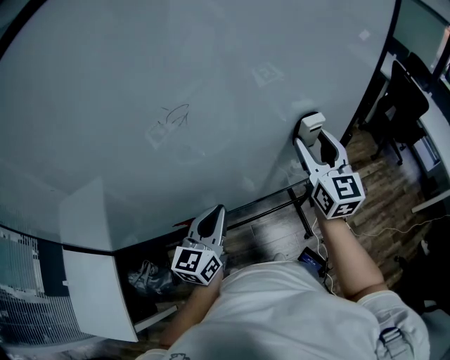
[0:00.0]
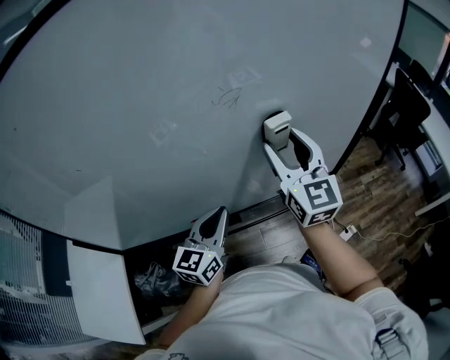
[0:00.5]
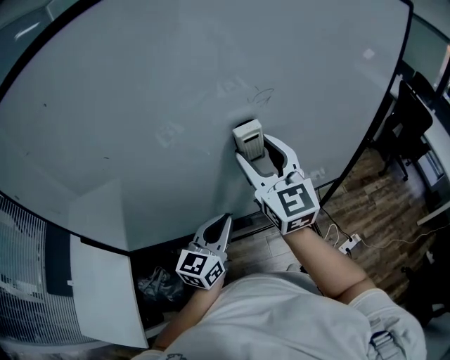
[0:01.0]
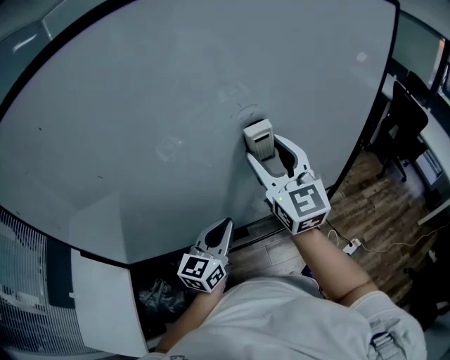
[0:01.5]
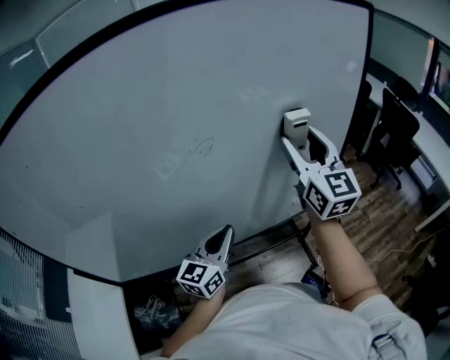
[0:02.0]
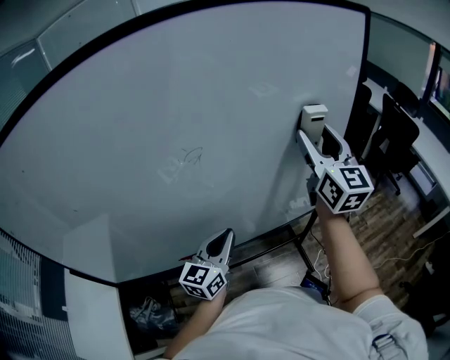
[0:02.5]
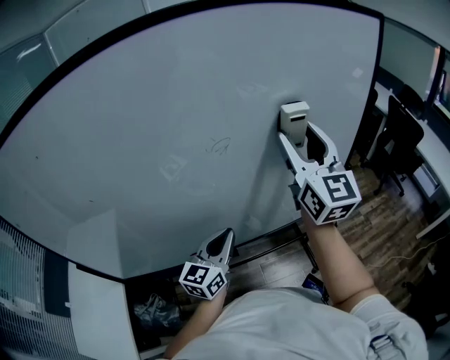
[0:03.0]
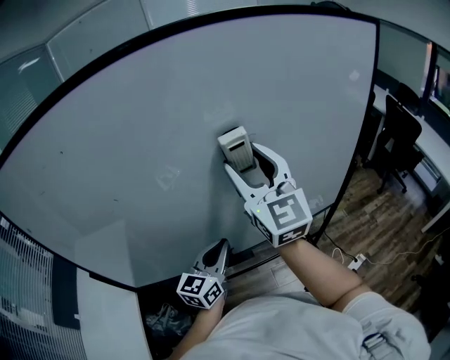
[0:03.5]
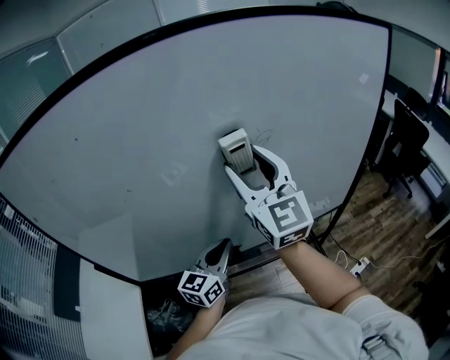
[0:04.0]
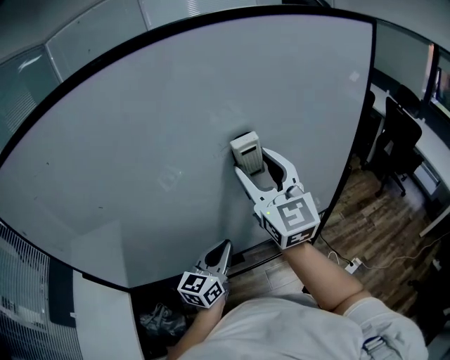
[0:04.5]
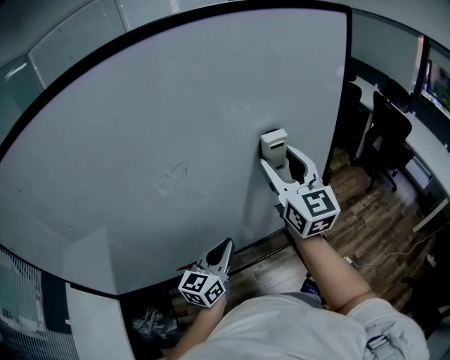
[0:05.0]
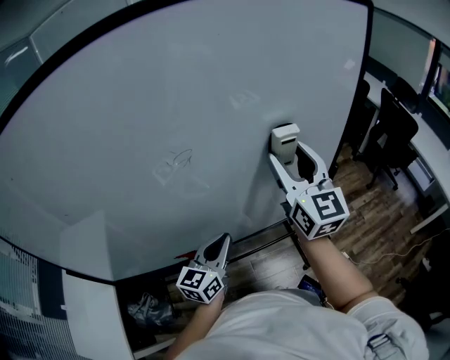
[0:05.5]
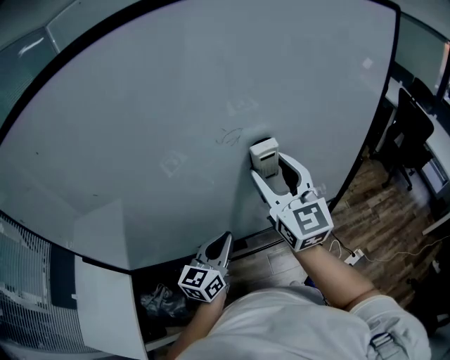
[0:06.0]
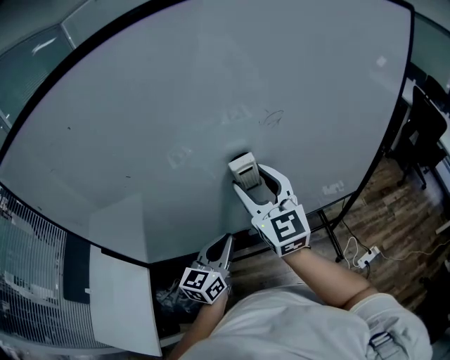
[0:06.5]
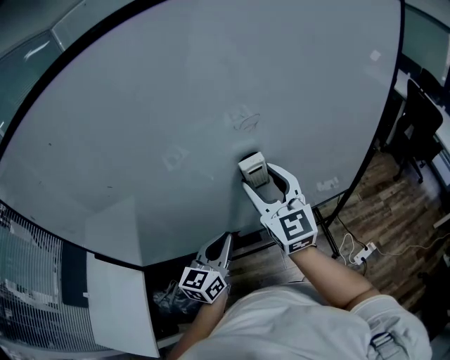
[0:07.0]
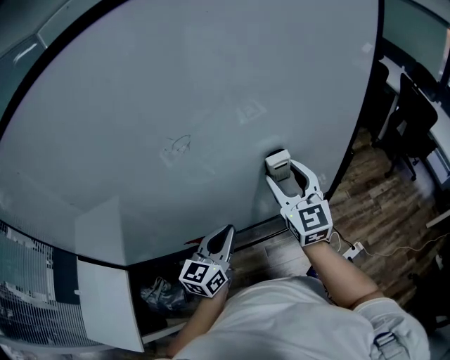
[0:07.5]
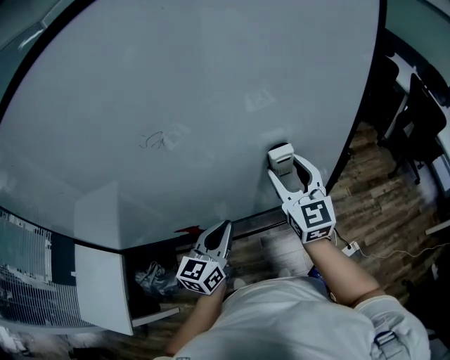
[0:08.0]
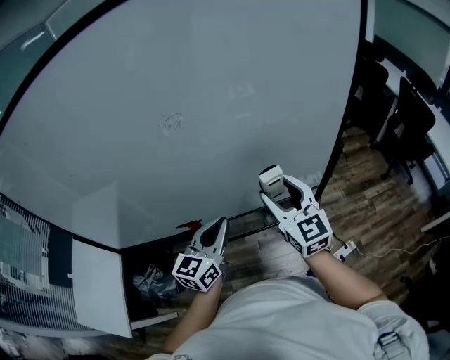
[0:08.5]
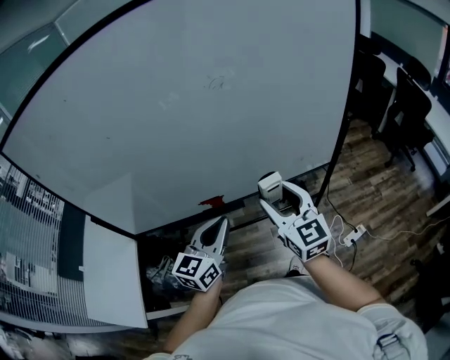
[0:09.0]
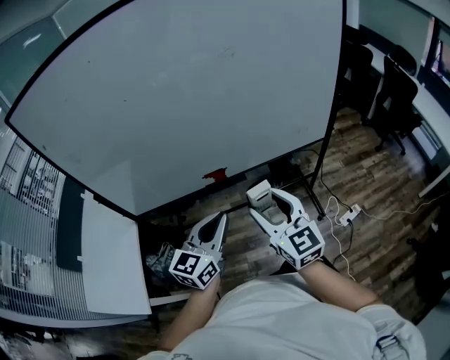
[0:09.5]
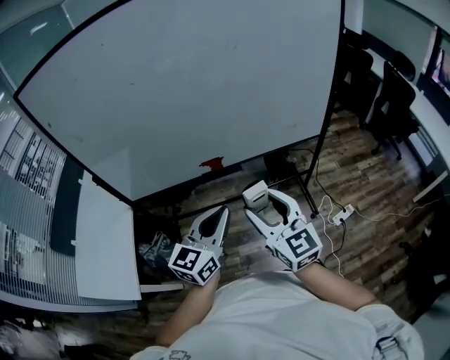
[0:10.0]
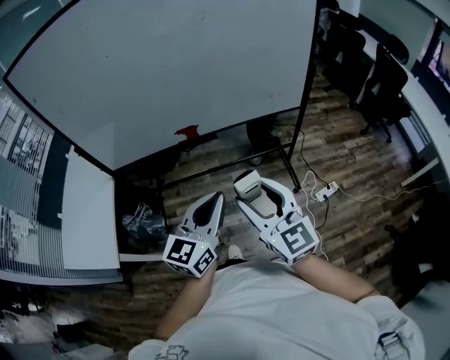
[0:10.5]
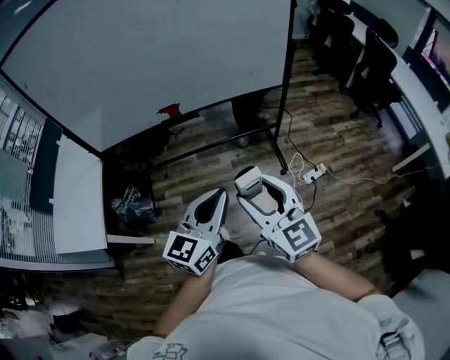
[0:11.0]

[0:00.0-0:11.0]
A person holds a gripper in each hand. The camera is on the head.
0:00.0 to 0:02.0: The right gripper heads upward, covering about 15 cm, and goes to the left and returns, approximately 25 cm each way. The left gripper moves about 10 cm to the left and comes back.
0:02.0 to 0:03.5: The left gripper moves to the left and backward, some 15 cm. Meanwhile the right gripper shifts approximately 25 cm to the left and backward.
0:03.5 to 0:05.5: The two grippers go some 20 cm to the right.
0:05.5 to 0:07.5: The right gripper moves downward, about 10 cm, and travels to the left and back again, some 30 cm each way, while the left gripper reaches approximately 20 cm to the left, then returns.
0:07.5 to 0:09.0: Both grippers travel together backward and to the left, roughly 25 cm.
0:09.0 to 0:11.0: Both grippers move backward, approximately 35 cm.

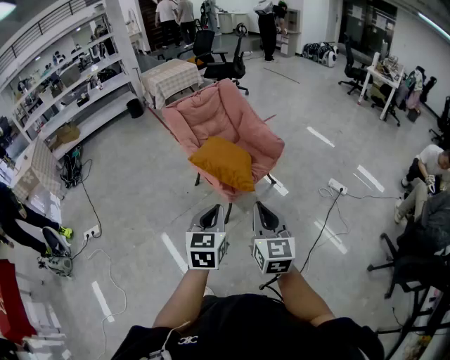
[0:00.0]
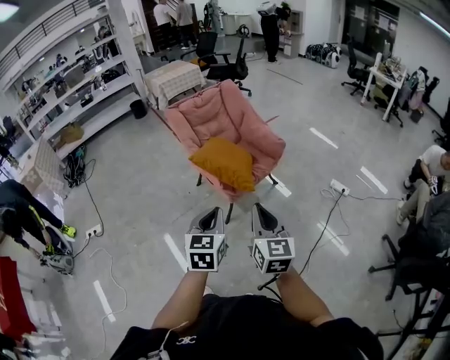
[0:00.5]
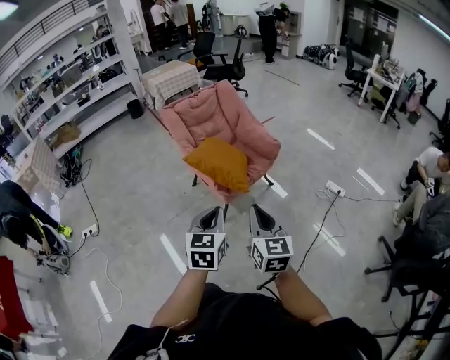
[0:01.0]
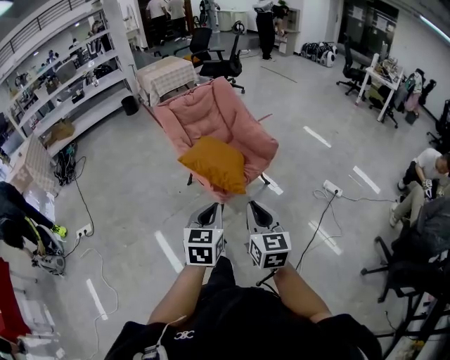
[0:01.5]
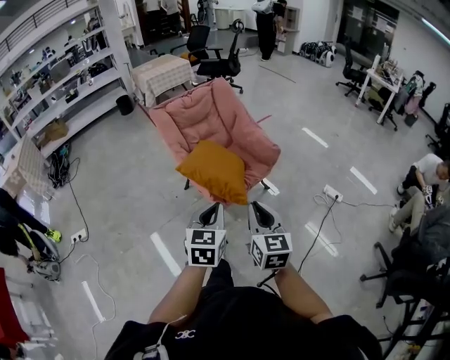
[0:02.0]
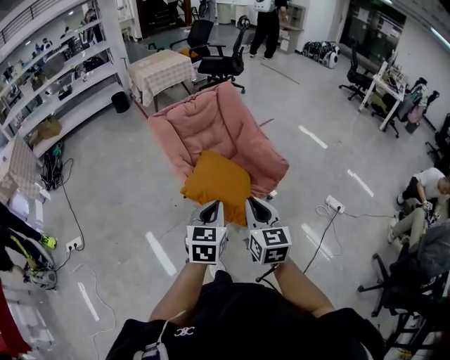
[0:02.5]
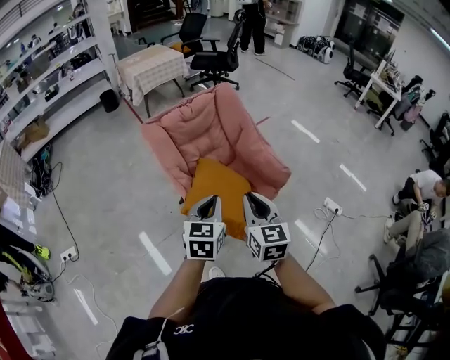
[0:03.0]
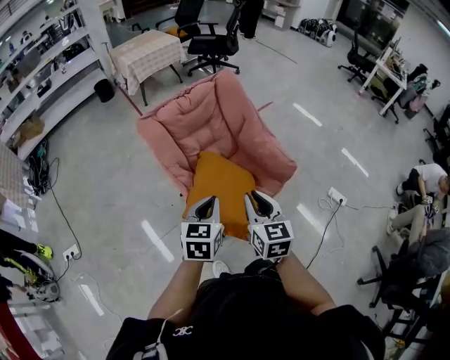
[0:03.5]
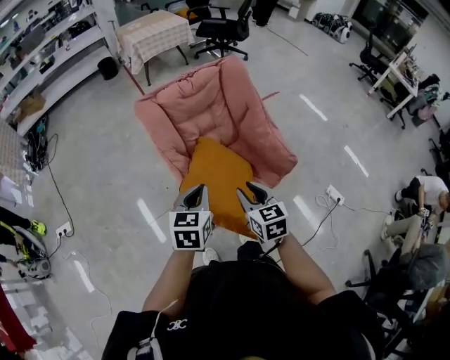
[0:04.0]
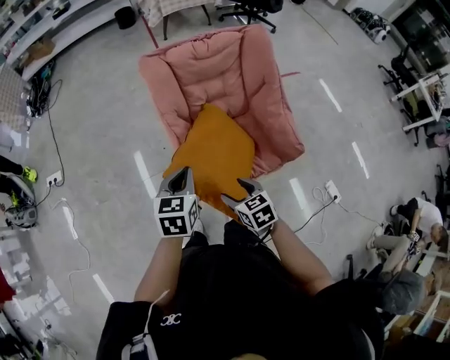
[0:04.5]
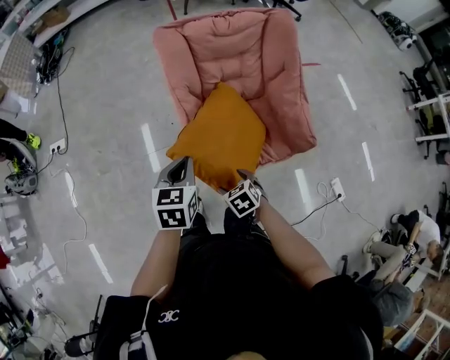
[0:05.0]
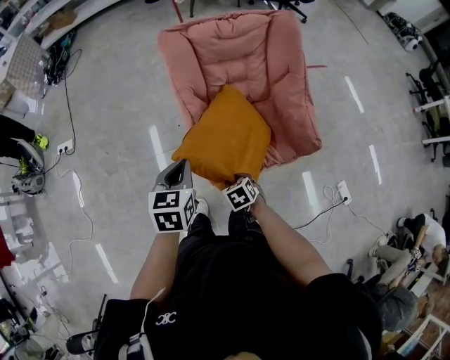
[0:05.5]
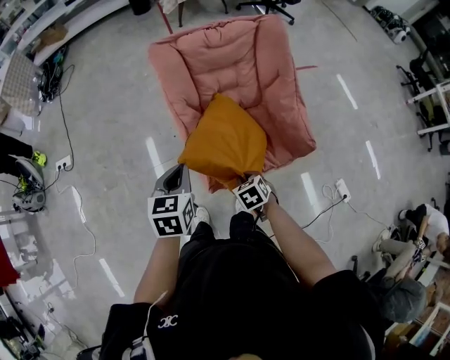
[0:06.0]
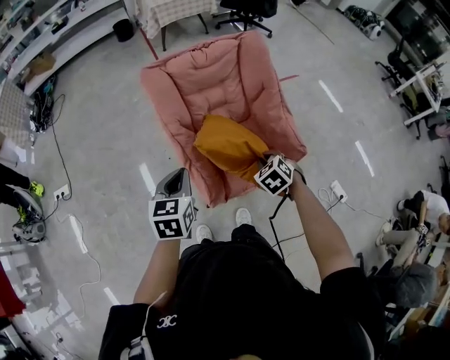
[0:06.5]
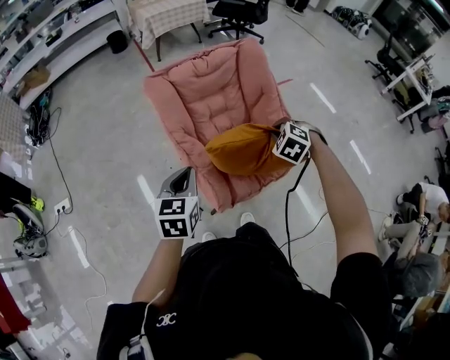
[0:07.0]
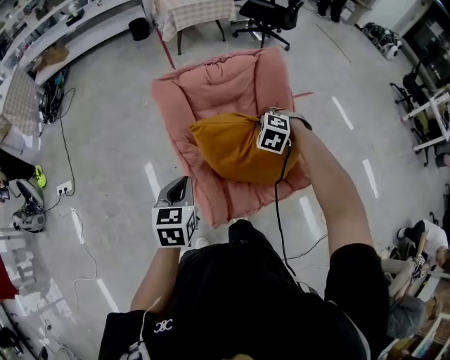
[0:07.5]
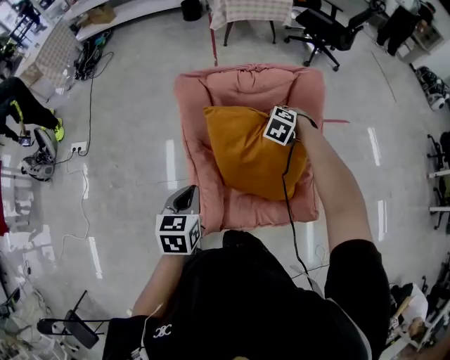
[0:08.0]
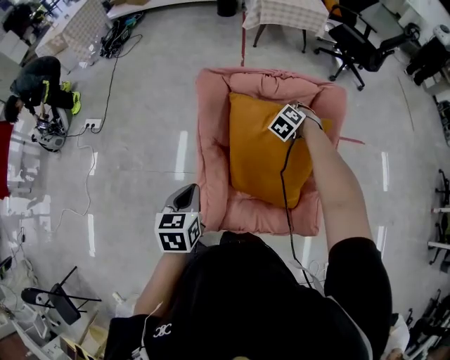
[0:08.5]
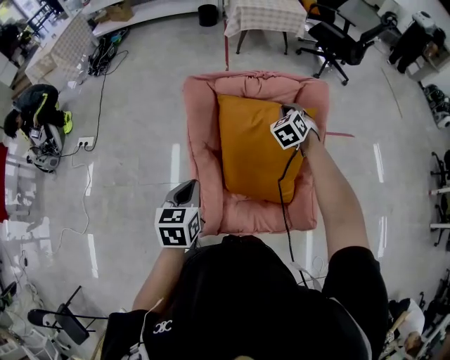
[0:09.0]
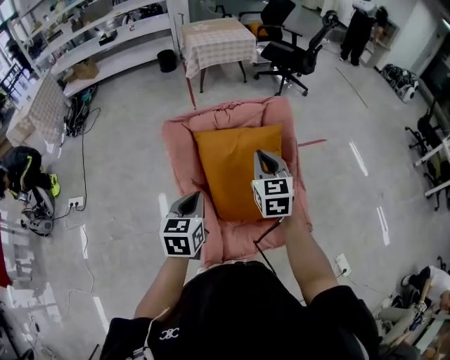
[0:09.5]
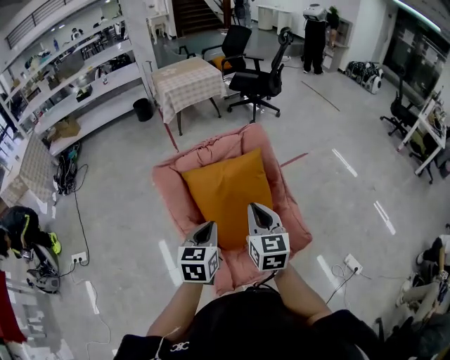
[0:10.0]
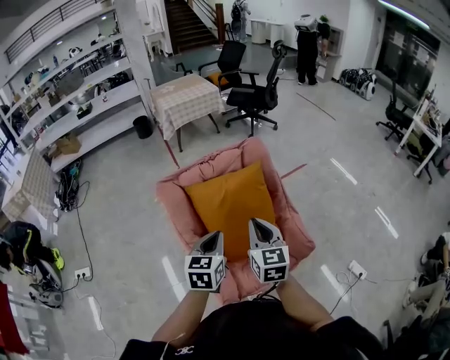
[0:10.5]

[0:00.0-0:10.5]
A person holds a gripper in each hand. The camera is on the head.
0:00.0 to 0:02.0: Both grippers move forward, about 10 cm.
0:02.0 to 0:04.0: Both grippers travel together forward, about 30 cm. The right gripper swivels some 30 degrees.
0:04.0 to 0:06.5: The right gripper tips its fingers downward by some 30 degrees, and opens and closes again, while the left gripper shifts by some 5 cm.
0:06.5 to 0:08.5: The left gripper heads forward, covering some 10 cm, and changes its angle by approximately 30 degrees; the right gripper travels forward by approximately 40 cm, and swivels some 40 degrees.
0:08.5 to 0:10.5: The left gripper travels to the right and upward by some 15 cm, and rotates about 40 degrees. The right gripper is displaced backward and upward by about 40 cm, and rolls clockwise, seen from behind, by about 70 degrees.

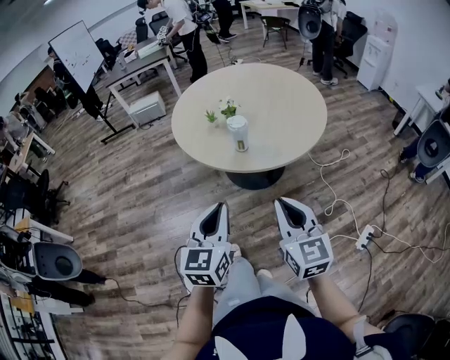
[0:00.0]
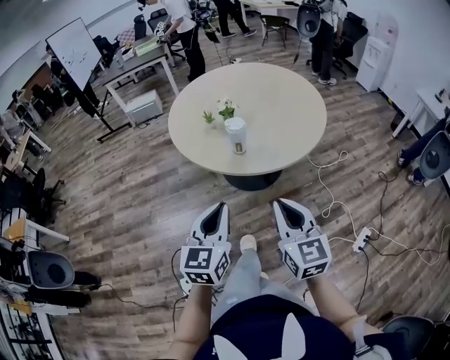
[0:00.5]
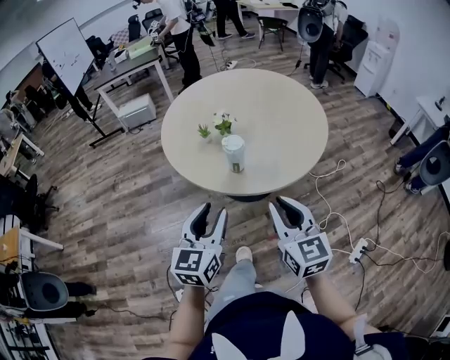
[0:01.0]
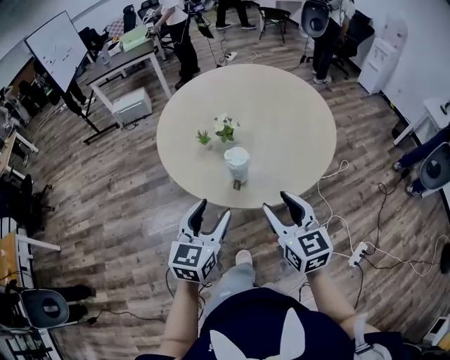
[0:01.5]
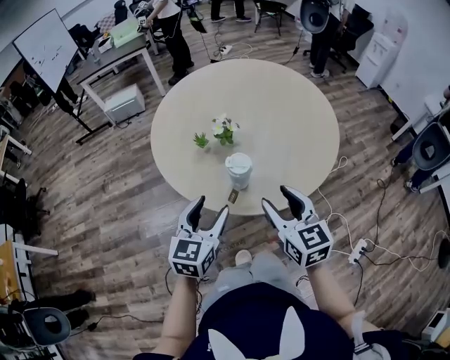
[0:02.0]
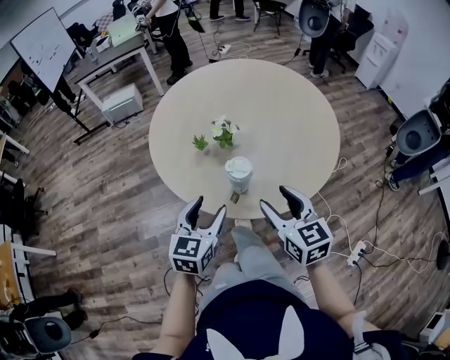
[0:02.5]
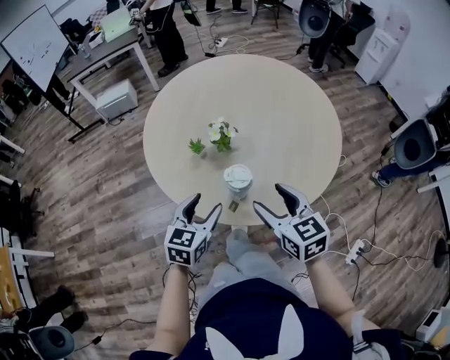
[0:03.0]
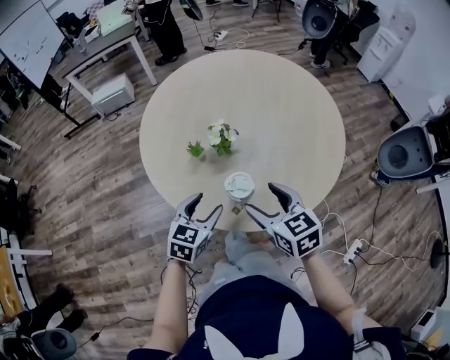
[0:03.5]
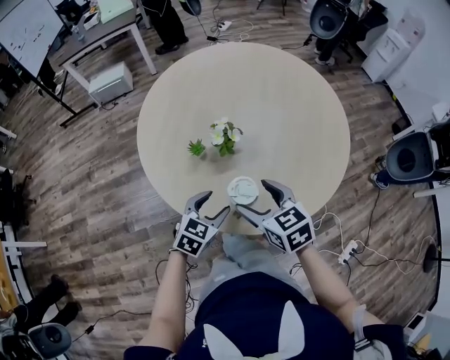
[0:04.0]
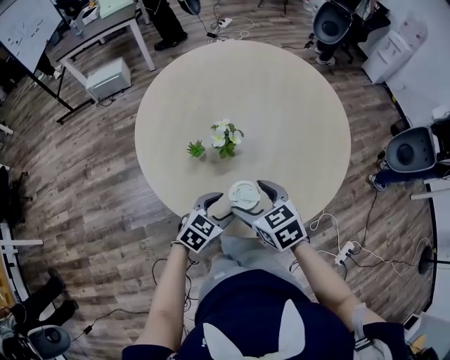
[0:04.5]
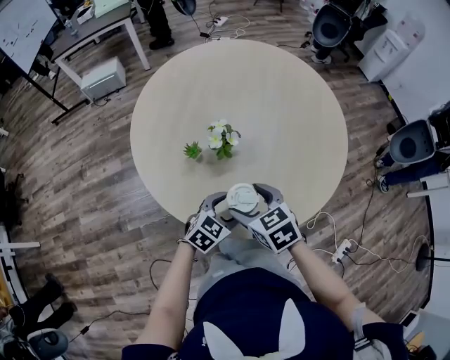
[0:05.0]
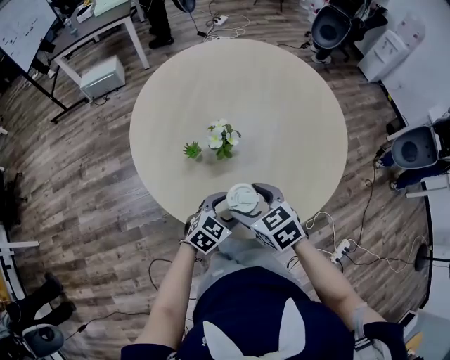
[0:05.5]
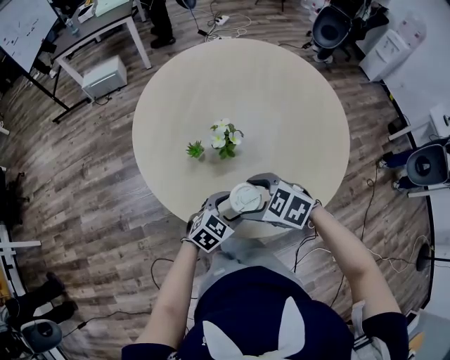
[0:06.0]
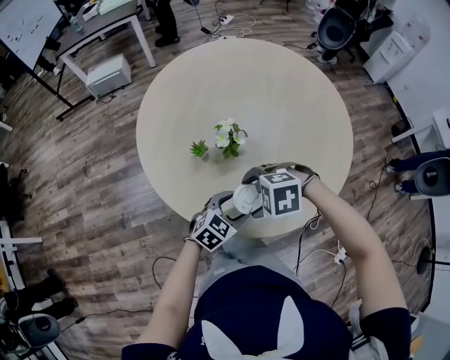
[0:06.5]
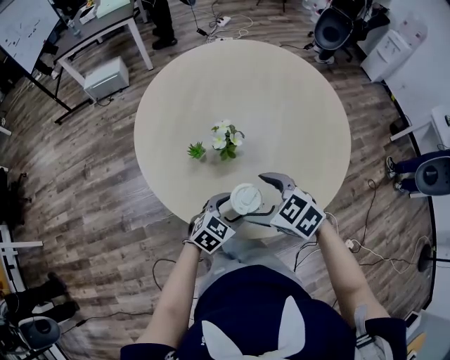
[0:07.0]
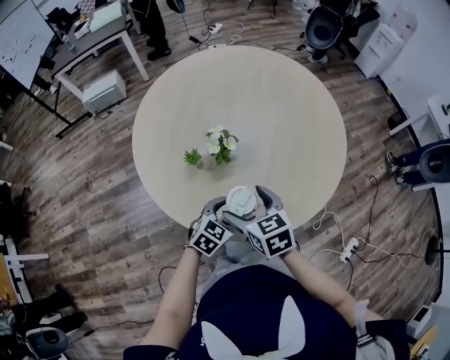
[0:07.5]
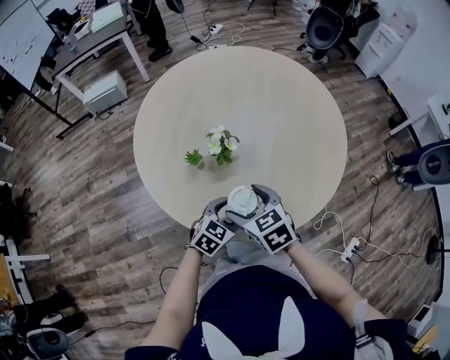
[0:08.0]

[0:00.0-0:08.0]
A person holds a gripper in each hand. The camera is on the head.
0:00.0 to 0:02.0: Both grippers move forward, approximately 25 cm. The left gripper opens its fingers. The right gripper opens up.
0:02.0 to 0:04.0: The left gripper goes about 20 cm downward and forward, and rotates approximately 30 degrees. Meanwhile the right gripper goes some 15 cm forward, downward and to the left, and turns by about 20 degrees.
0:04.0 to 0:06.0: The left gripper shifts by about 5 cm. The right gripper rotates roughly 40 degrees.
0:06.0 to 0:08.0: The right gripper rotates some 40 degrees.
